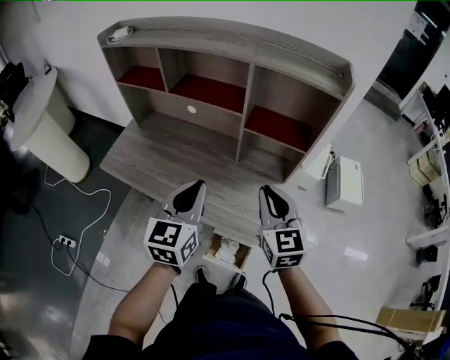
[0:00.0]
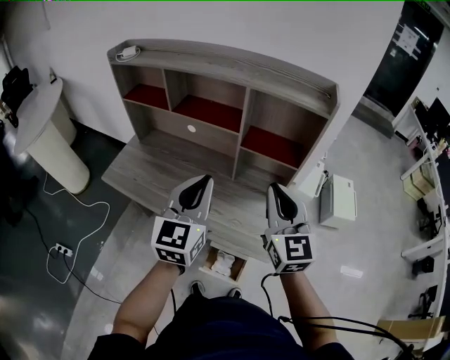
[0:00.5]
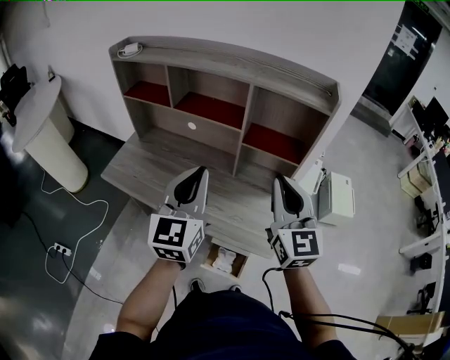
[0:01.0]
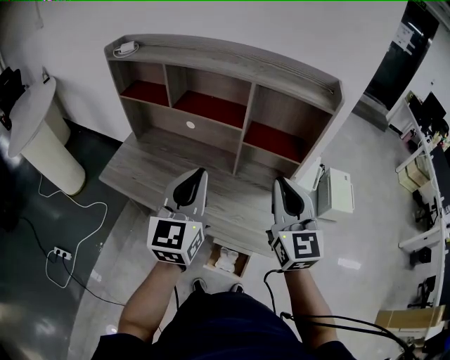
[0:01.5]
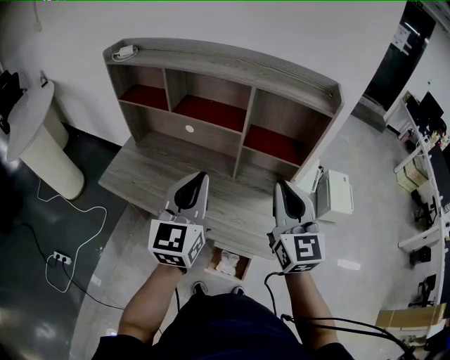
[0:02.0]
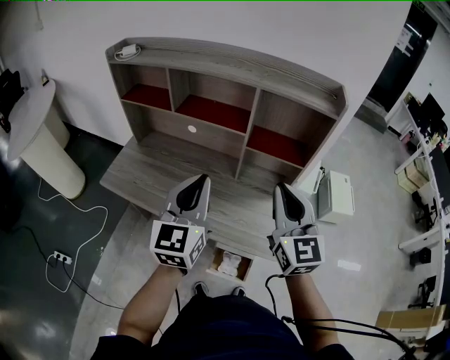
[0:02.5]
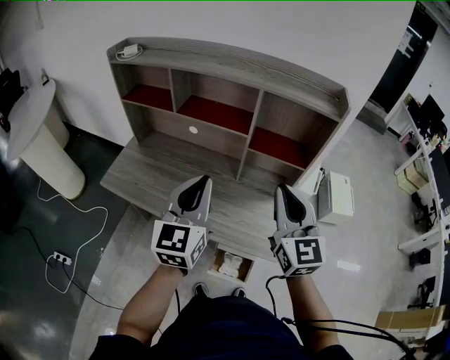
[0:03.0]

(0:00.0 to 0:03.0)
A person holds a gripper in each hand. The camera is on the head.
0:00.0 - 0:01.5: The two grippers go roughly 10 cm upward.
0:01.5 - 0:03.0: The grippers make only small movements.

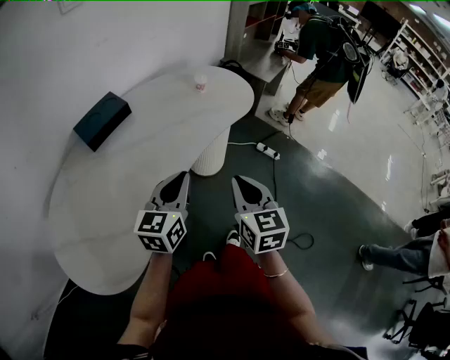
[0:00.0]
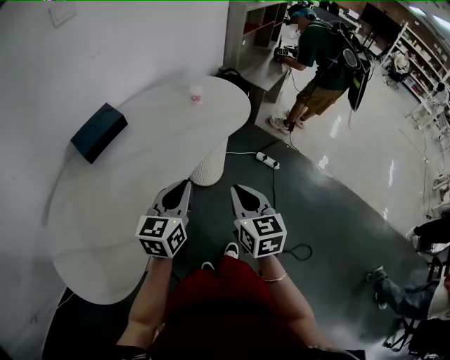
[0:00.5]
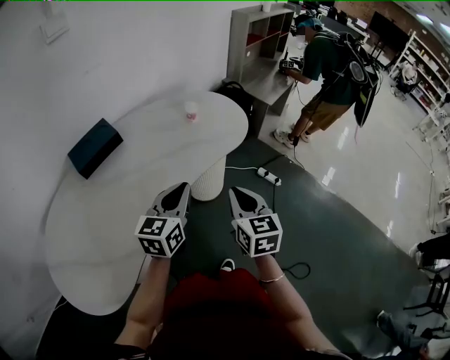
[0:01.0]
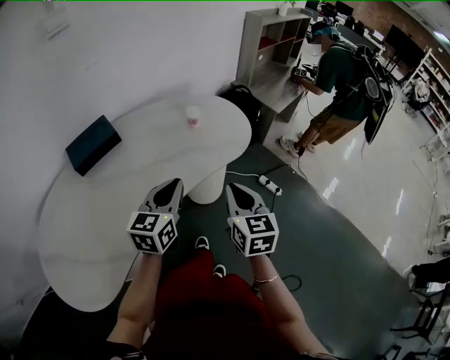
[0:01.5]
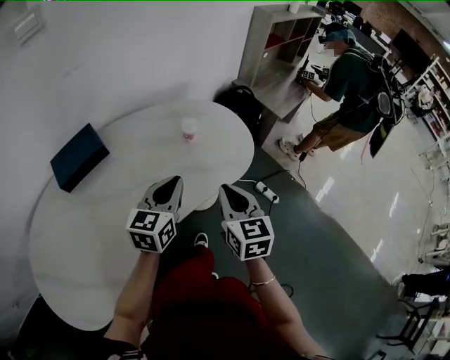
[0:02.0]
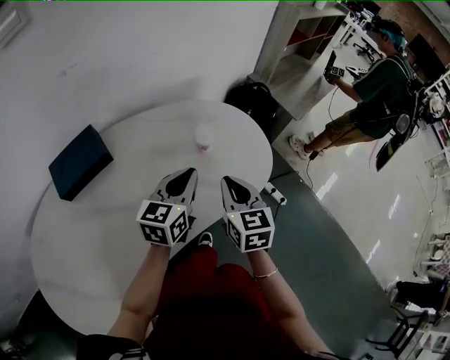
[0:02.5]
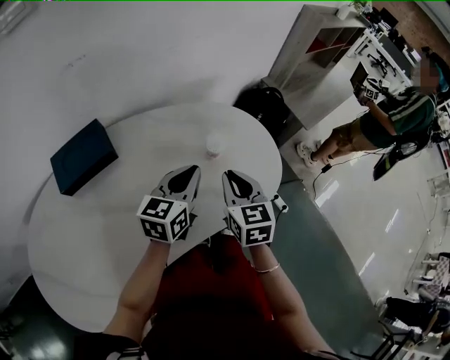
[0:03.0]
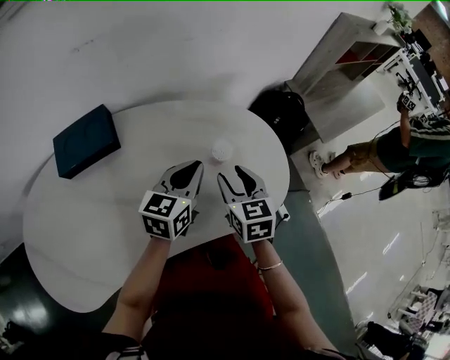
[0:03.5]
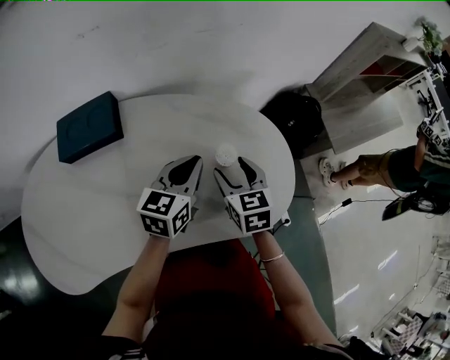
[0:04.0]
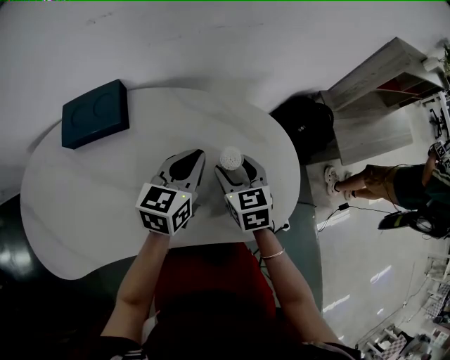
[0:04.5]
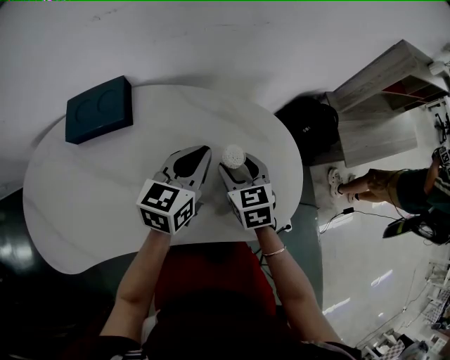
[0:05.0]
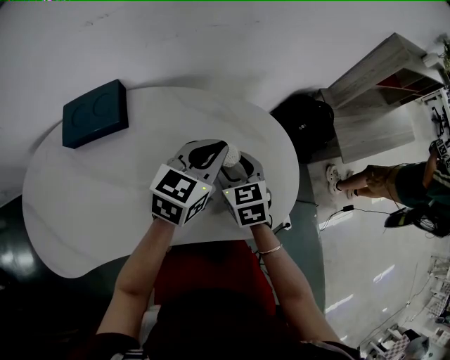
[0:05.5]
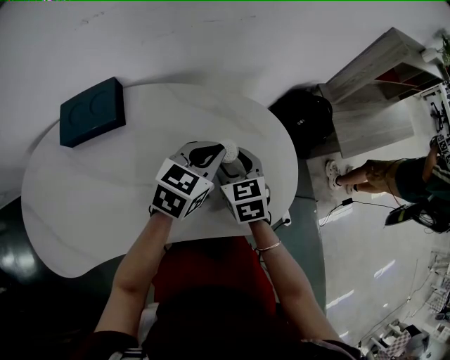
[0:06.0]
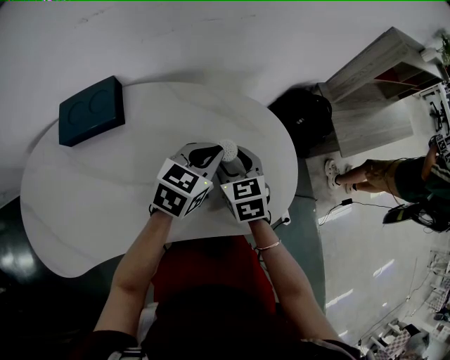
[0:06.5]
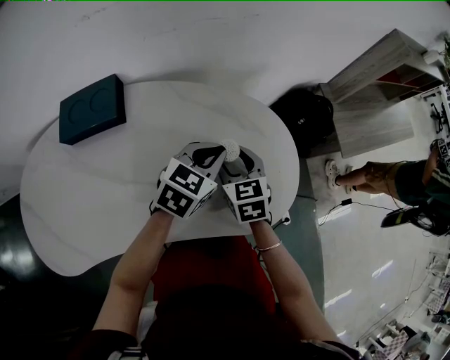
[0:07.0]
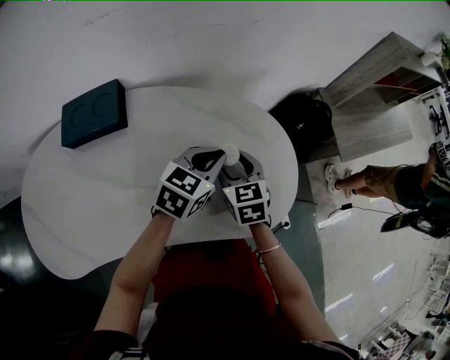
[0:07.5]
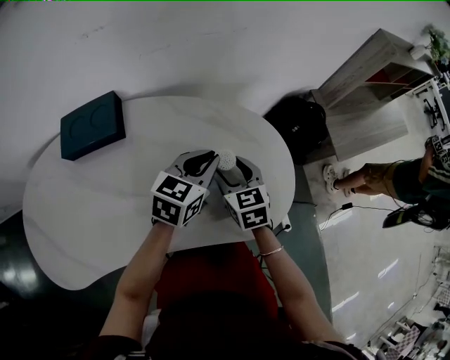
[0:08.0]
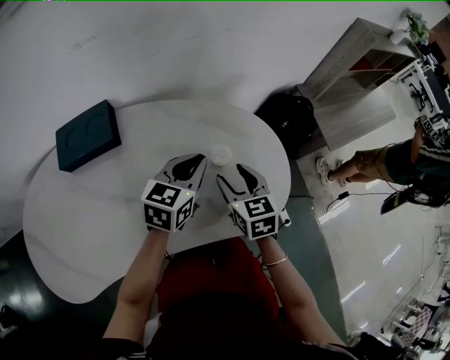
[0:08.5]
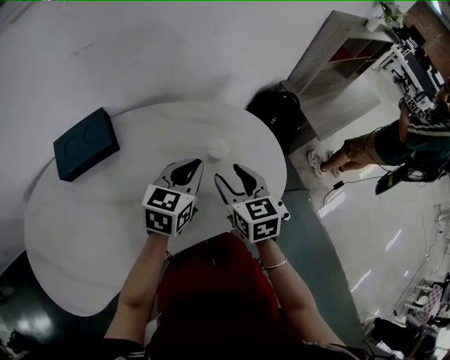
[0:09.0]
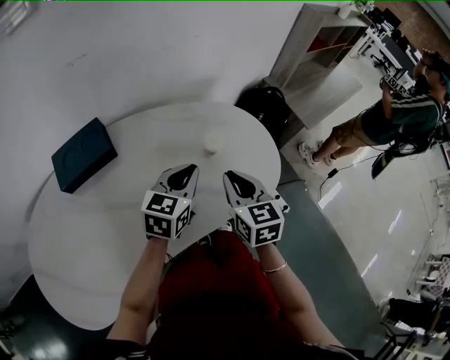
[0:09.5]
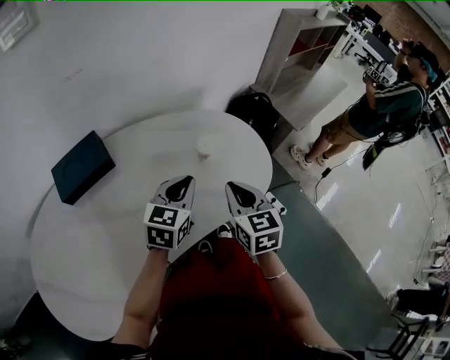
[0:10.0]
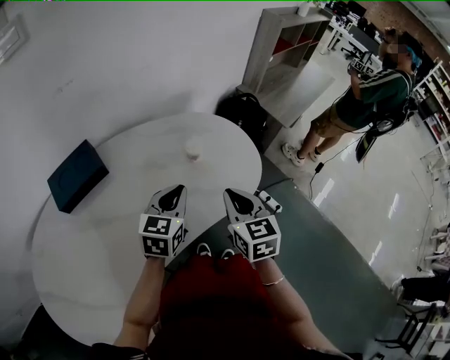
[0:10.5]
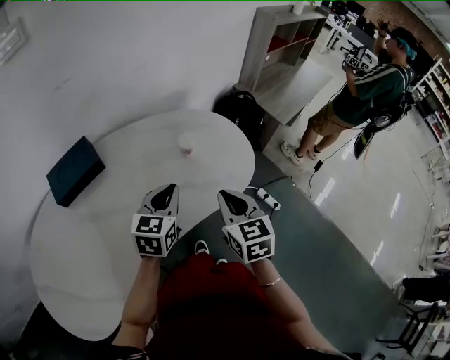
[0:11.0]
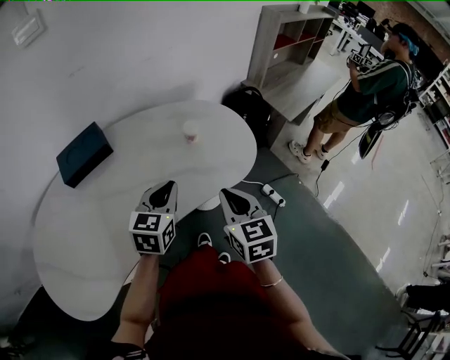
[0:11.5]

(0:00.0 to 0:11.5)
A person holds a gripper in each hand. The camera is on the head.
0:00.0 - 0:02.0: The two grippers go roughly 25 cm forward.
0:02.0 - 0:04.0: The right gripper travels forward and downward by about 25 cm, turns by about 30 degrees, and opens up; the left gripper heads forward, covering roughly 20 cm, and swivels approximately 20 degrees.
0:04.0 - 0:06.0: The left gripper moves to the right, some 5 cm.
0:06.0 - 0:07.5: The grippers make only small movements.
0:07.5 - 0:09.5: The left gripper shifts some 10 cm backward. Meanwhile the right gripper goes approximately 15 cm backward and upward, turns by roughly 20 degrees, and closes up.
0:09.5 - 0:11.5: The right gripper moves backward and to the right, about 15 cm. The left gripper goes some 10 cm backward.

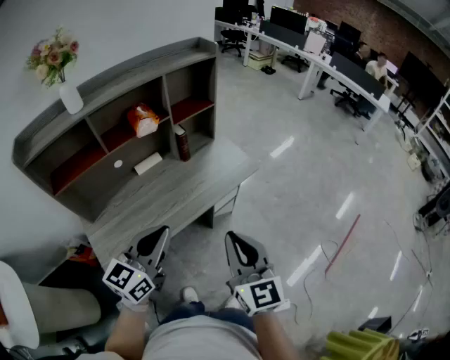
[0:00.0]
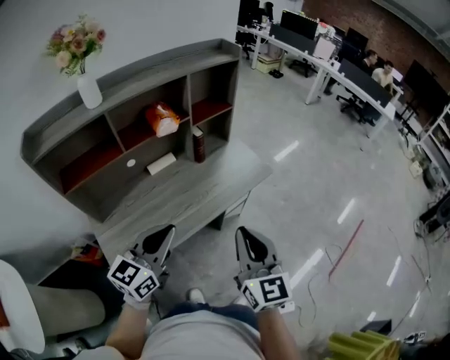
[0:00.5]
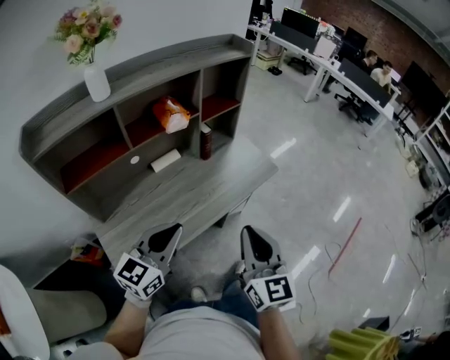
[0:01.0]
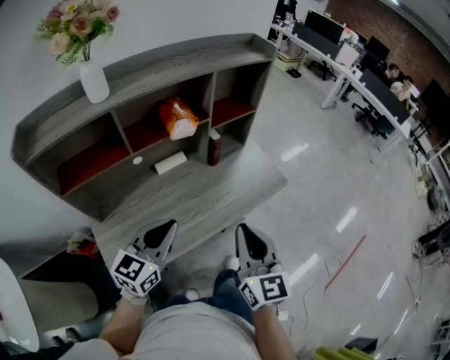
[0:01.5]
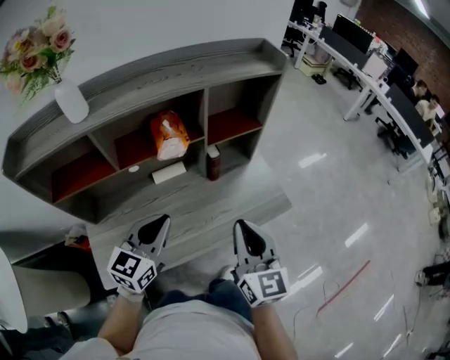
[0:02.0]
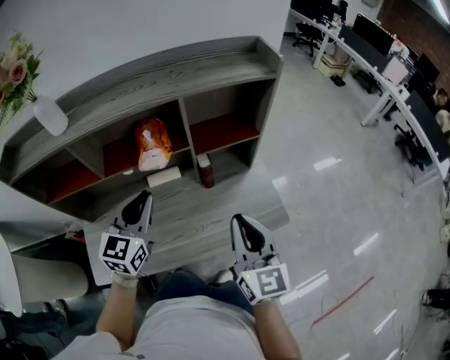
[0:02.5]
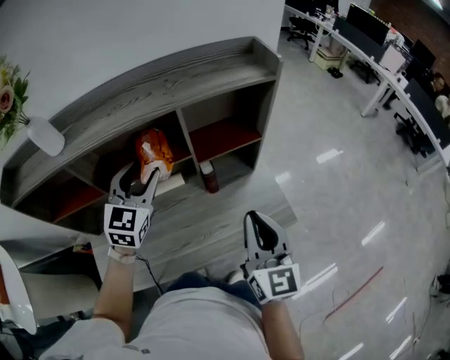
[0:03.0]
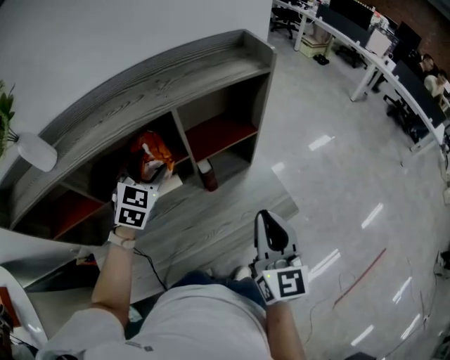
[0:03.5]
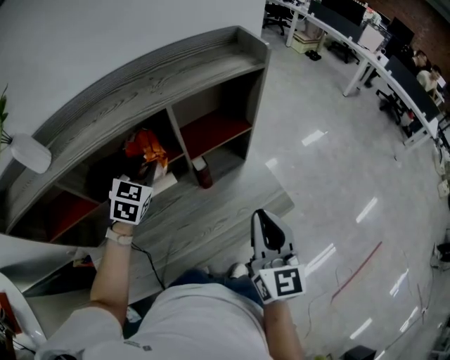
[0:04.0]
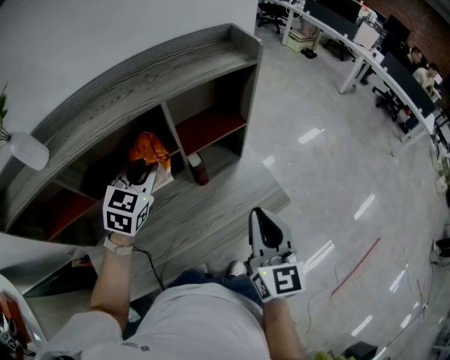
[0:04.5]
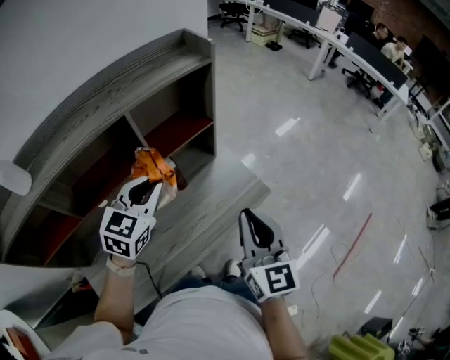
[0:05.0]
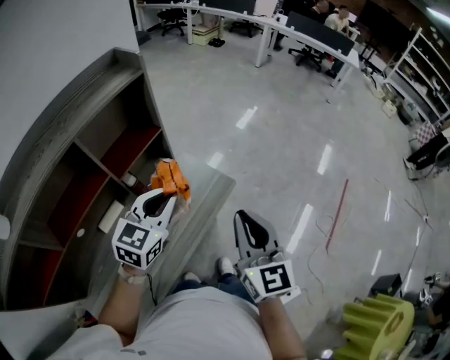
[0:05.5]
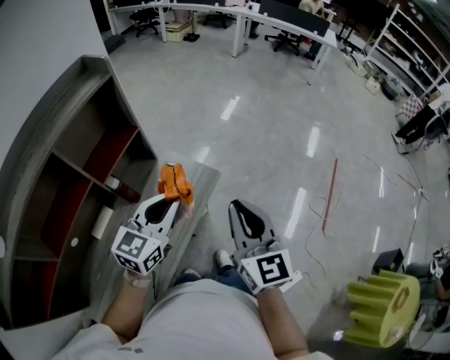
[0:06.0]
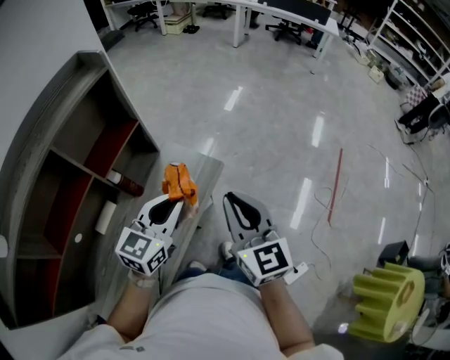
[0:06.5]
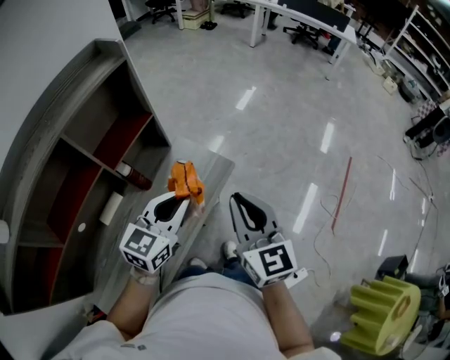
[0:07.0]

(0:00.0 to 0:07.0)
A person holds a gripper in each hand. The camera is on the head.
0:00.0 - 0:02.0: The right gripper heads forward, covering about 25 cm. Meanwhile the left gripper is displaced forward and to the left by some 25 cm.
0:02.0 - 0:03.5: The right gripper travels forward and to the right by some 15 cm. The left gripper moves forward, some 25 cm, swivels some 30 degrees, and opens up.
0:03.5 - 0:05.0: The right gripper shifts roughly 5 cm backward, while the left gripper is displaced to the right and backward by approximately 15 cm, changes its angle by some 30 degrees, and closes its fingers.
0:05.0 - 0:07.0: The right gripper shifts by roughly 10 cm. Meanwhile the left gripper shifts by approximately 20 cm, and changes its angle by approximately 30 degrees.

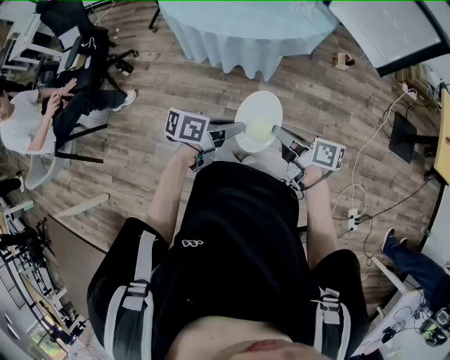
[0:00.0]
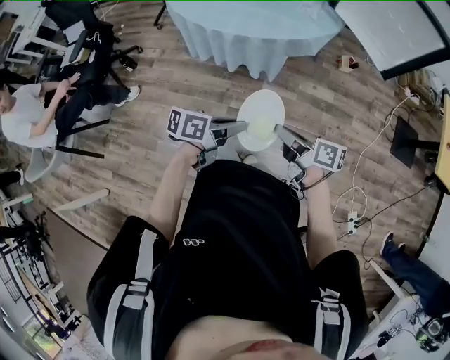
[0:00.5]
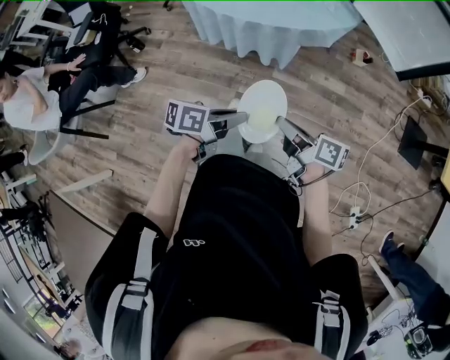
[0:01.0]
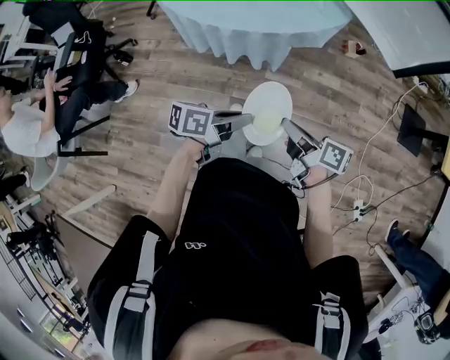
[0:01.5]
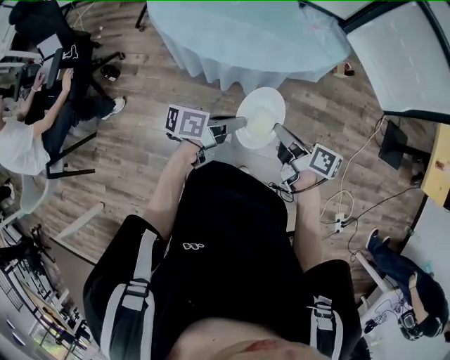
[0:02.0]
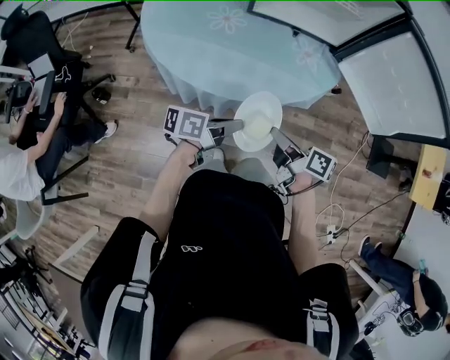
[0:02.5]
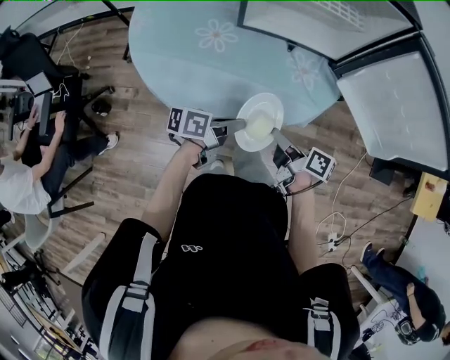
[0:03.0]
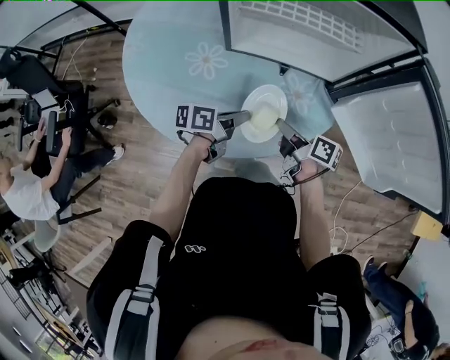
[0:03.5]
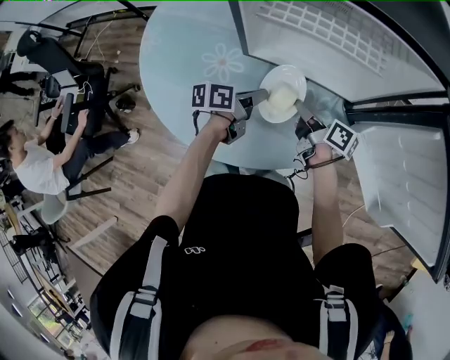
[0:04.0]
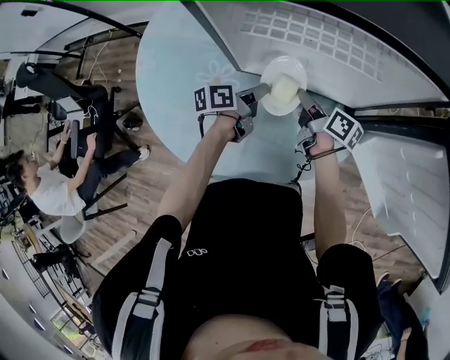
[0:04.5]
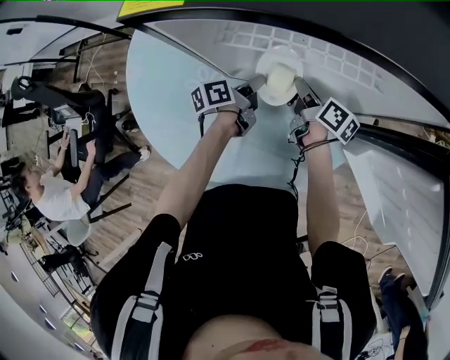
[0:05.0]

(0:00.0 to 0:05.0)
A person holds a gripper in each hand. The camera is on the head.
0:00.0 - 0:02.5: The two grippers go approximately 30 cm forward and to the left.
0:02.5 - 0:05.0: The pair of grippers is taken forward, approximately 50 cm. The left gripper turns by about 30 degrees.
